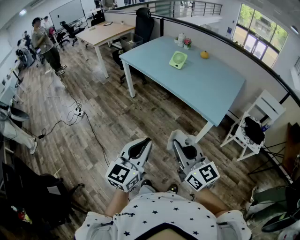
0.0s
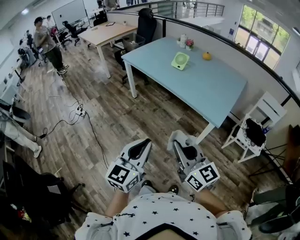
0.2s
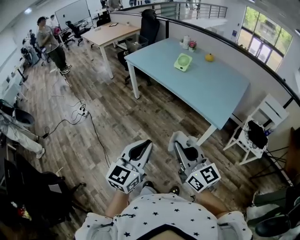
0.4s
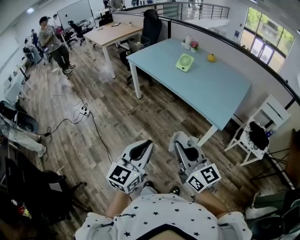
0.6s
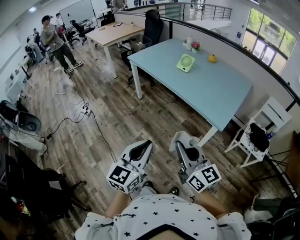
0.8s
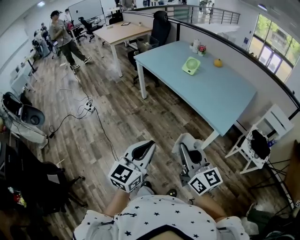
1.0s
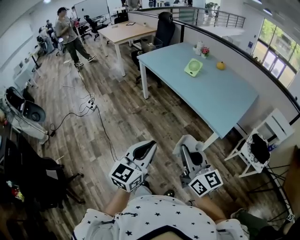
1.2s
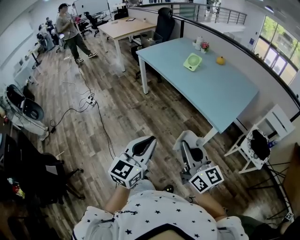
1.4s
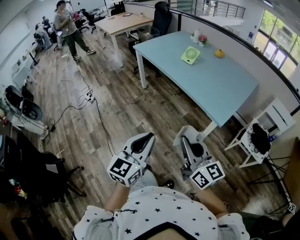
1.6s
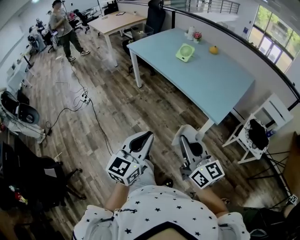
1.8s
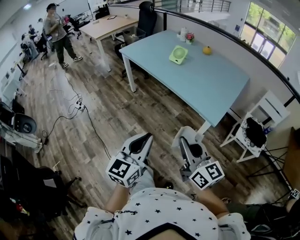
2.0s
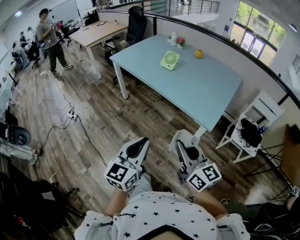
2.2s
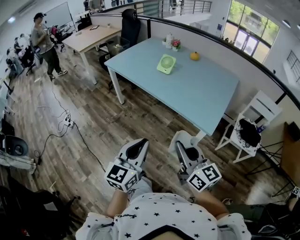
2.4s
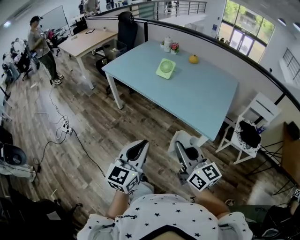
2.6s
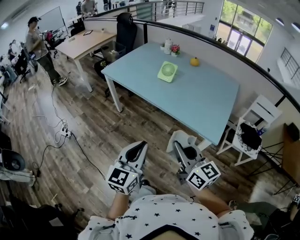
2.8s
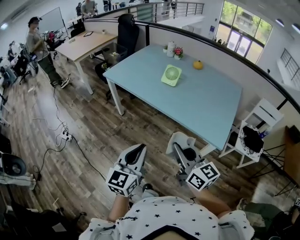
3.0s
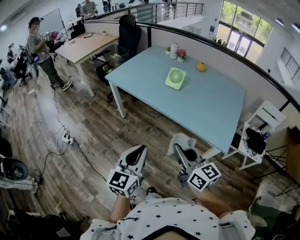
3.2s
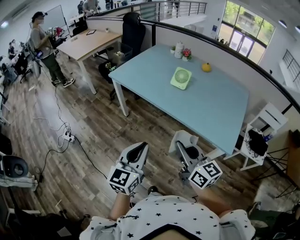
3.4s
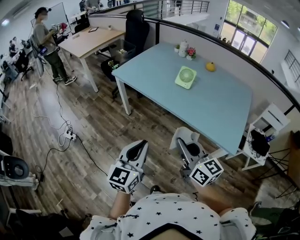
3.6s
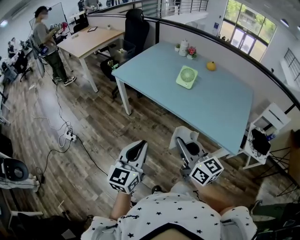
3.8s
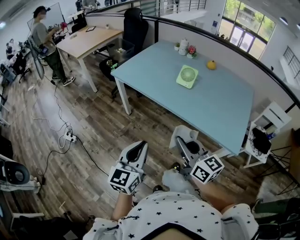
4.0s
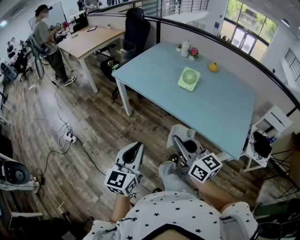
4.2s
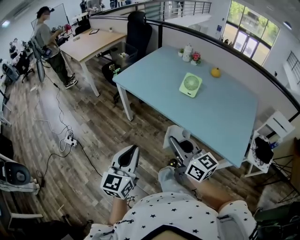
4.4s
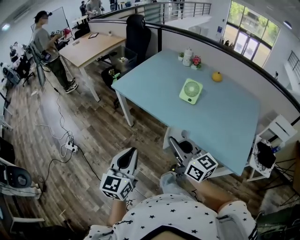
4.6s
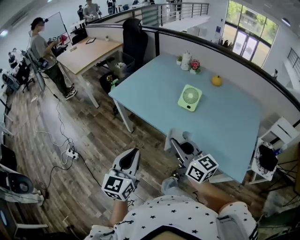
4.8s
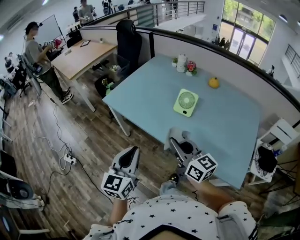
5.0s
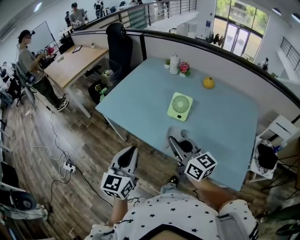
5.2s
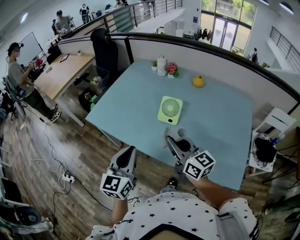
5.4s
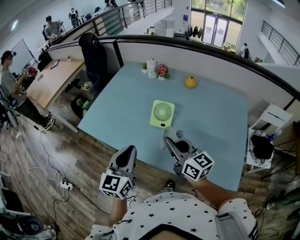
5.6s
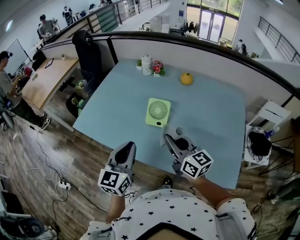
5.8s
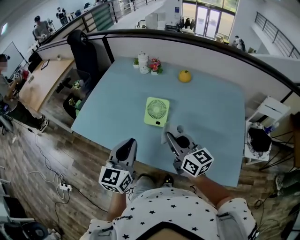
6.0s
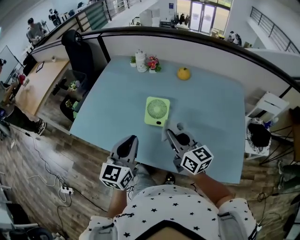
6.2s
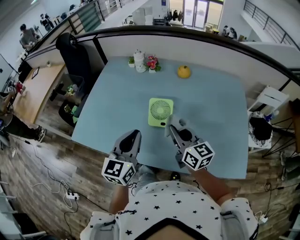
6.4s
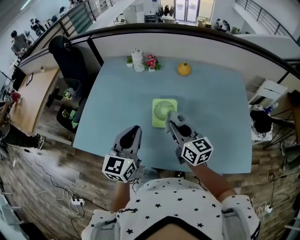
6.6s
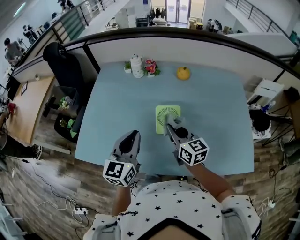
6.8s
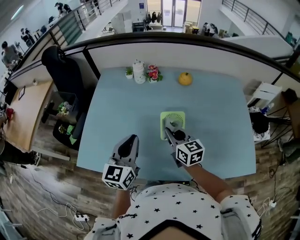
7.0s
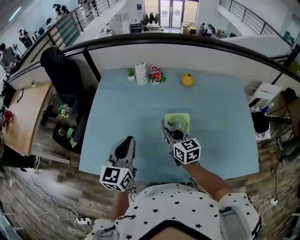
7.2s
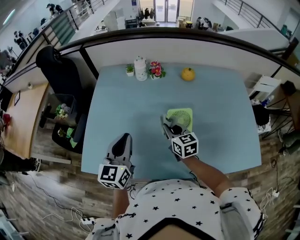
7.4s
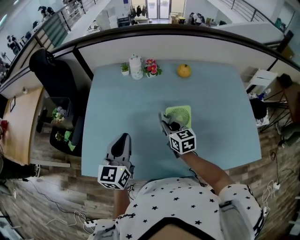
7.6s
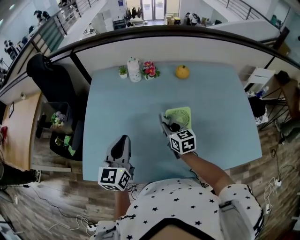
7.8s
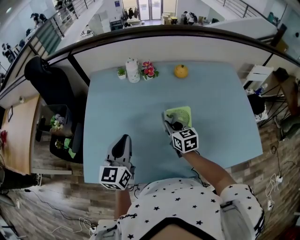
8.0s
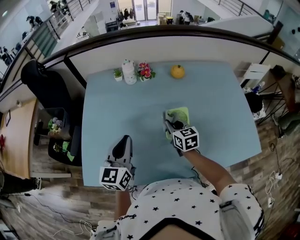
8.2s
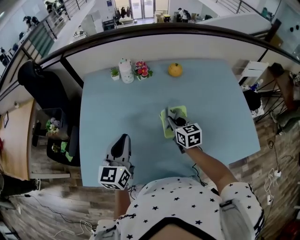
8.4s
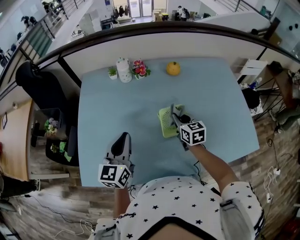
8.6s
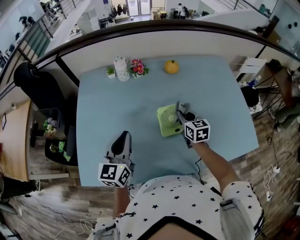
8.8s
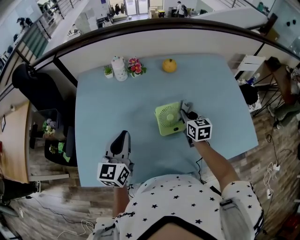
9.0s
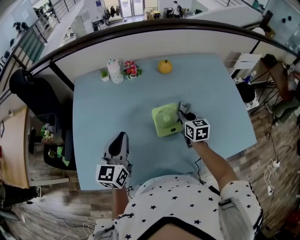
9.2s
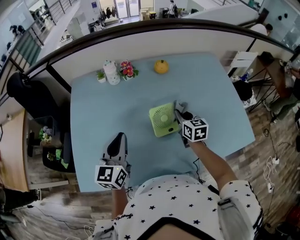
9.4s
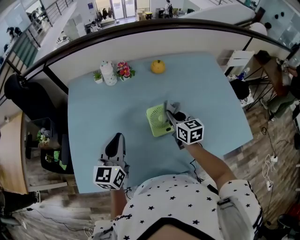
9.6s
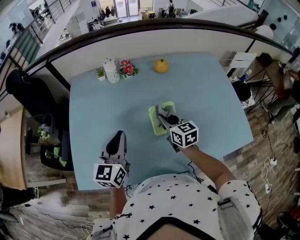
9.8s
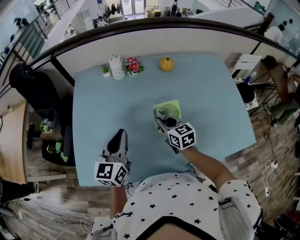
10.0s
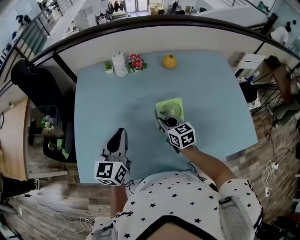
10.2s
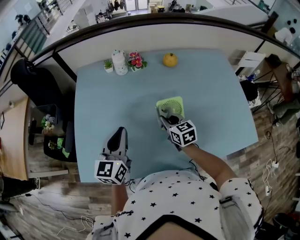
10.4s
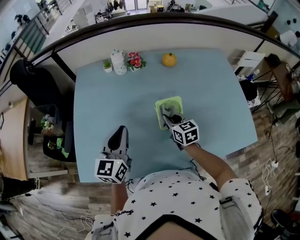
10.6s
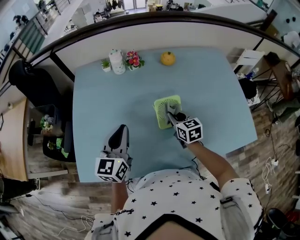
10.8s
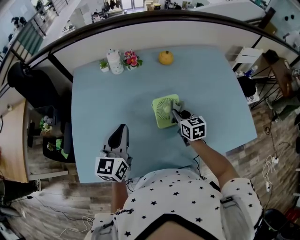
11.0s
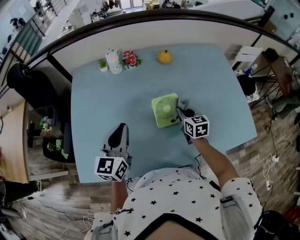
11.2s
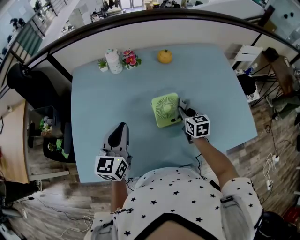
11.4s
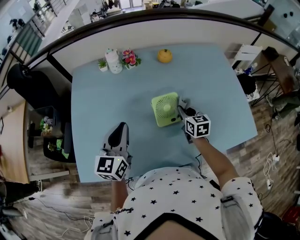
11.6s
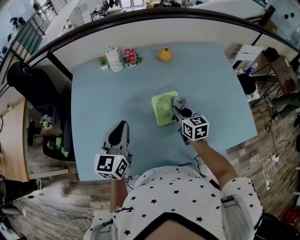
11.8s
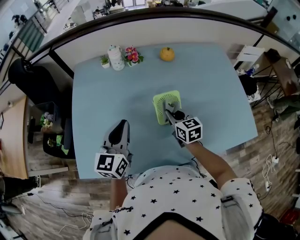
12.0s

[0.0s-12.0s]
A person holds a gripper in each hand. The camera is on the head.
0.0s to 1.6s: The right gripper travels to the right by roughly 5 cm. Meanwhile the left gripper shifts by about 5 cm.
1.6s to 3.0s: Both grippers move forward and to the left, about 25 cm.
3.0s to 4.4s: The right gripper heads forward and to the left, covering some 20 cm. The left gripper travels to the left and forward by some 20 cm.
4.4s to 6.0s: The grippers both shift forward and to the right by approximately 35 cm. The right gripper rotates approximately 20 degrees.
6.0s to 7.6s: The right gripper heads forward, to the left and downward, covering about 30 cm, and changes its angle by some 30 degrees, while the left gripper is displaced forward and to the left by about 25 cm.
7.6s to 9.0s: The right gripper goes roughly 15 cm to the right.
9.0s to 10.4s: The right gripper travels to the left by roughly 10 cm.
10.4s to 12.0s: The right gripper moves approximately 10 cm to the right and comes back.

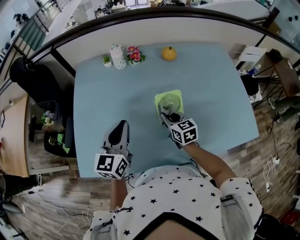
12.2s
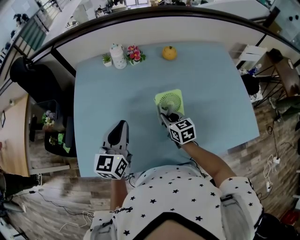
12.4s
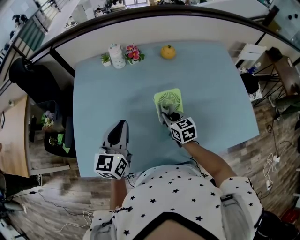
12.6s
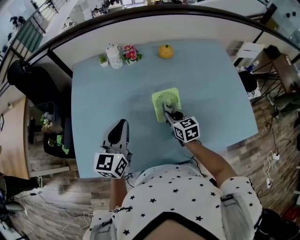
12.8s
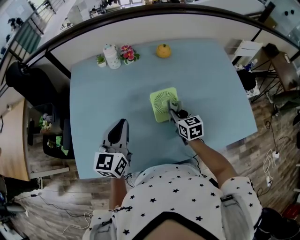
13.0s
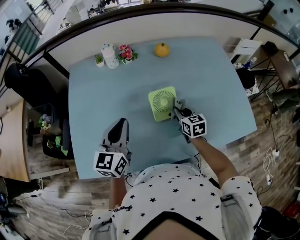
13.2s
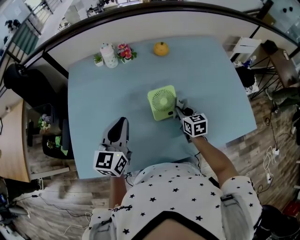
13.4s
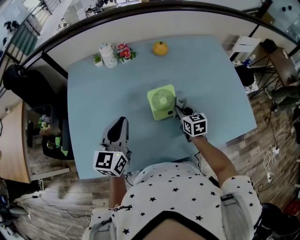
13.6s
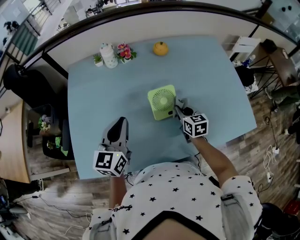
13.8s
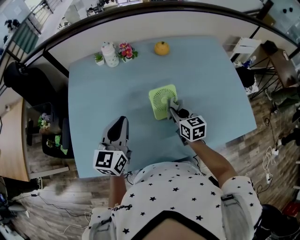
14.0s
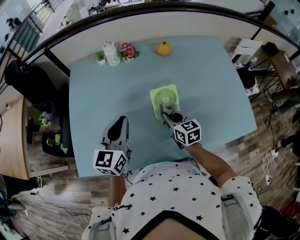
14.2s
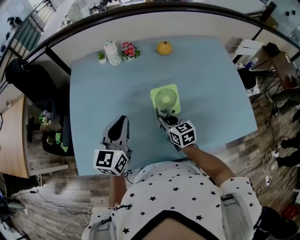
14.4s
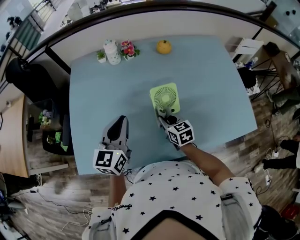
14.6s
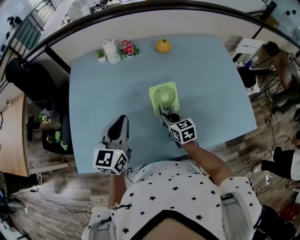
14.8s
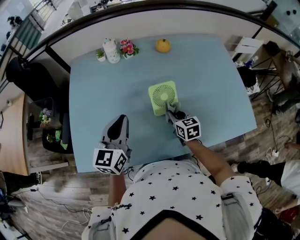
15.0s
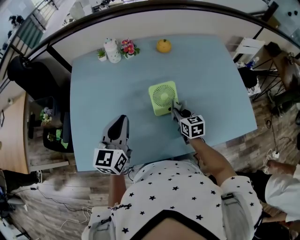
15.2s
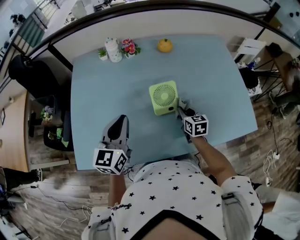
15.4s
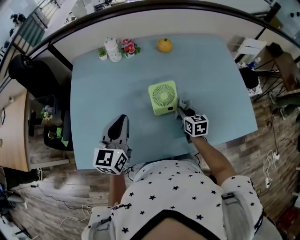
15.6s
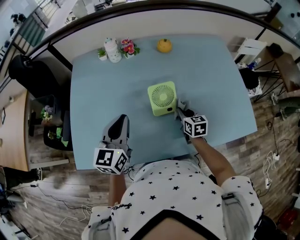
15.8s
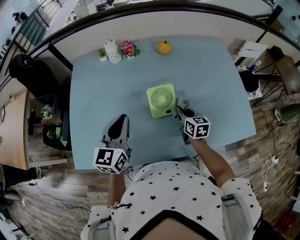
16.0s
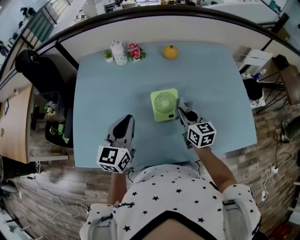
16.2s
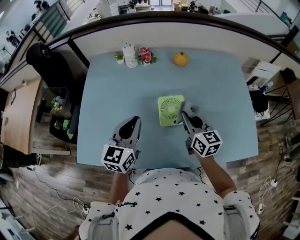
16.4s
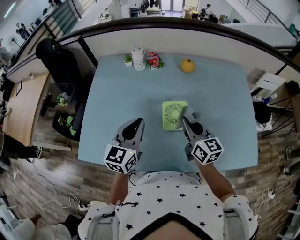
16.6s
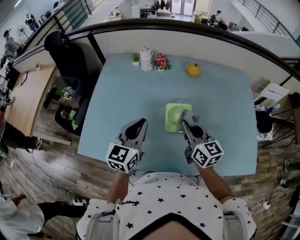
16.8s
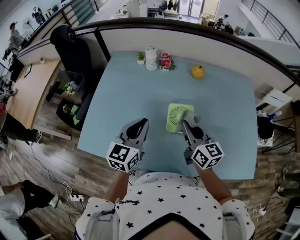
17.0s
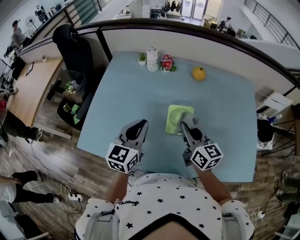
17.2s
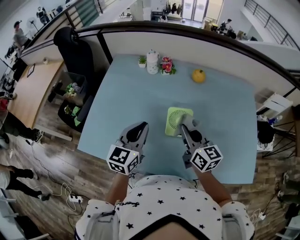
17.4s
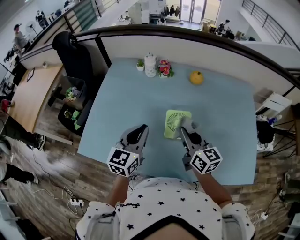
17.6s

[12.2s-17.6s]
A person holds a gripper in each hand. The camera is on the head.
12.2s to 13.6s: The right gripper heads to the right, covering roughly 10 cm.
13.6s to 15.0s: The right gripper goes about 5 cm to the left.
15.0s to 16.2s: The right gripper heads upward, covering roughly 10 cm.
16.2s to 17.6s: The right gripper moves upward, approximately 10 cm, and swivels about 20 degrees.

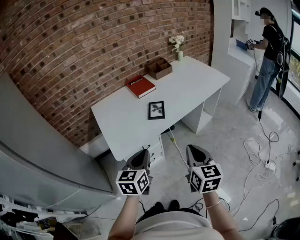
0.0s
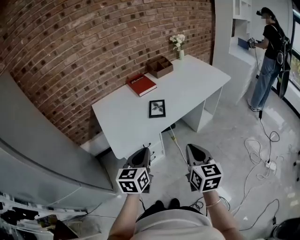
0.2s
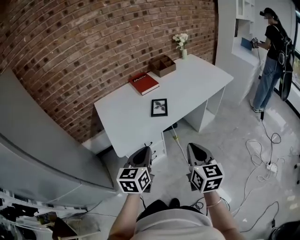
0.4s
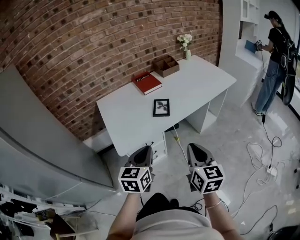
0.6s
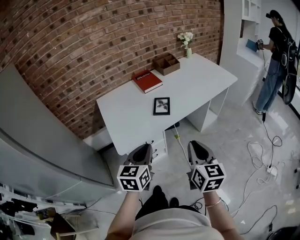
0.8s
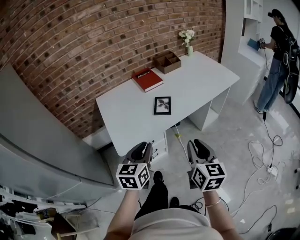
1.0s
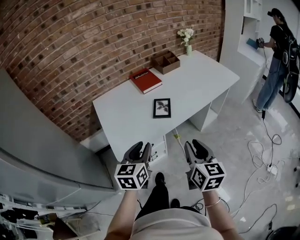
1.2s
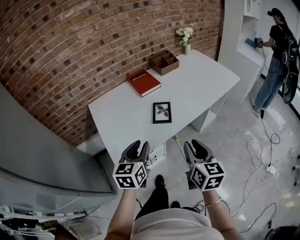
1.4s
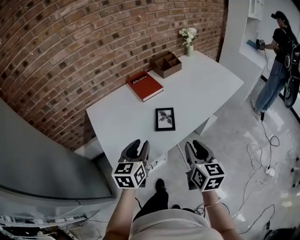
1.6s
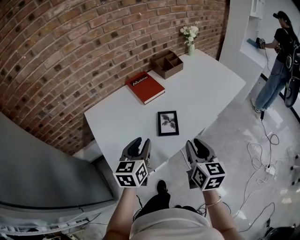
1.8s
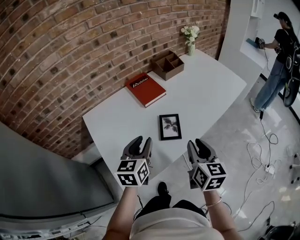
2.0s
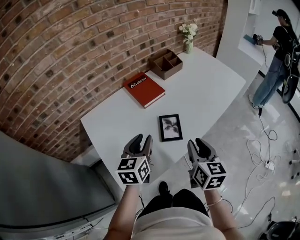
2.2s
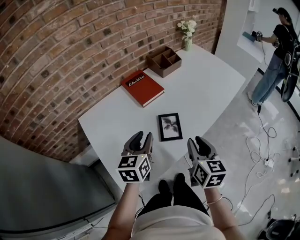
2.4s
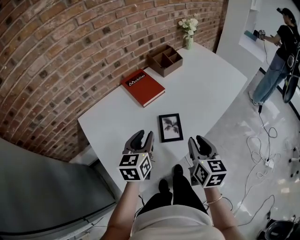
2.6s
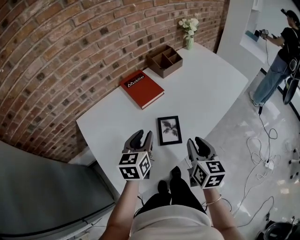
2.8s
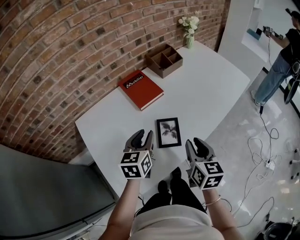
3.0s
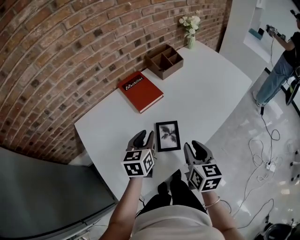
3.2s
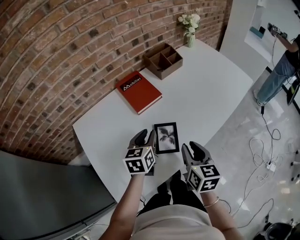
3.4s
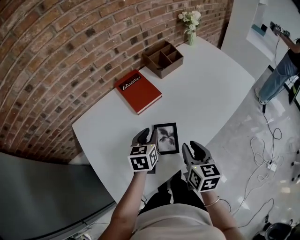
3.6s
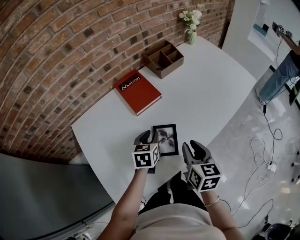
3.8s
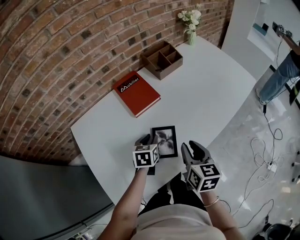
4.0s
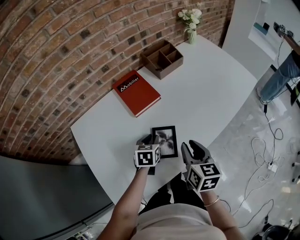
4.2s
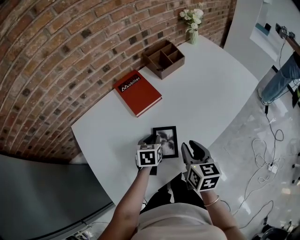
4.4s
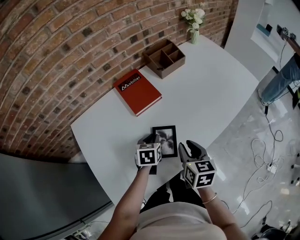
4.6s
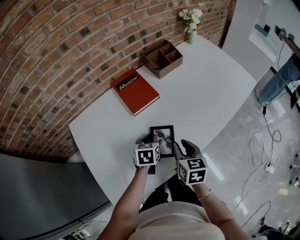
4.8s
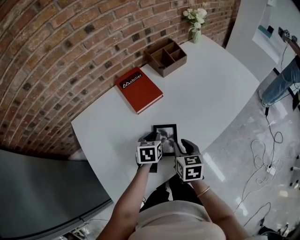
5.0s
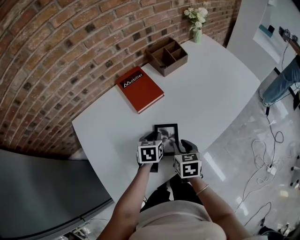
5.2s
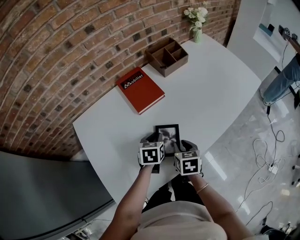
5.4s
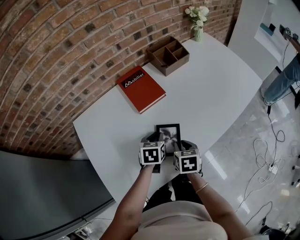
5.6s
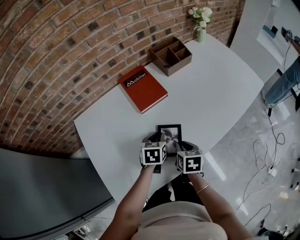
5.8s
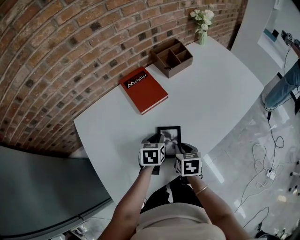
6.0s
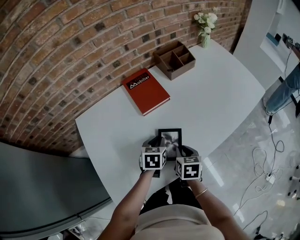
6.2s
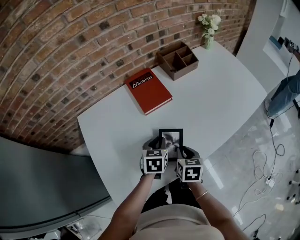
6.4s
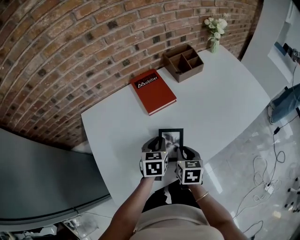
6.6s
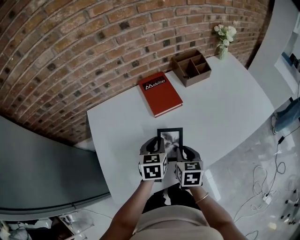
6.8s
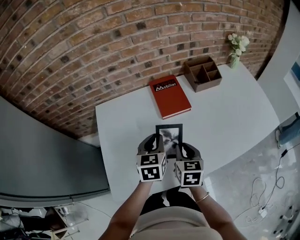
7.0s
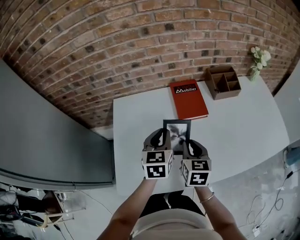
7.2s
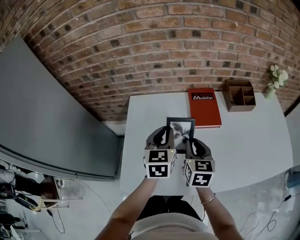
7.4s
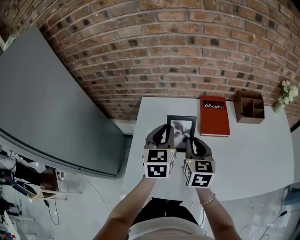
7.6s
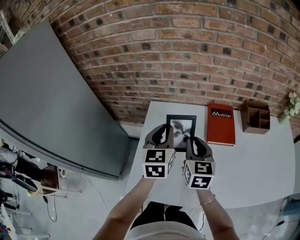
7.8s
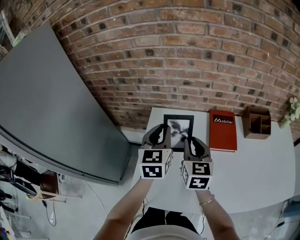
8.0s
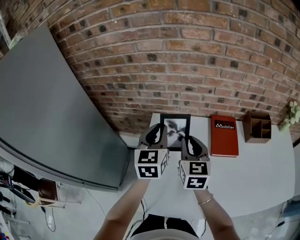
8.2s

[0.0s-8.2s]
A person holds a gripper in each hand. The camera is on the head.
0.0s to 1.6s: The grippers both shift forward by roughly 15 cm. The right gripper opens its fingers. The left gripper opens.
1.6s to 3.2s: The grippers both shift forward by approximately 15 cm.
3.2s to 5.0s: The left gripper moves downward, approximately 10 cm, and rotates roughly 20 degrees, while the right gripper travels downward and forward by about 10 cm.
5.0s to 6.6s: The left gripper ends up about 5 cm from where it was.
6.6s to 8.2s: The left gripper moves some 35 cm, and swivels some 50 degrees. Meanwhile the right gripper moves about 35 cm, and rotates approximately 50 degrees.
